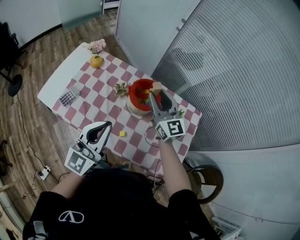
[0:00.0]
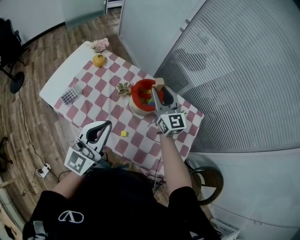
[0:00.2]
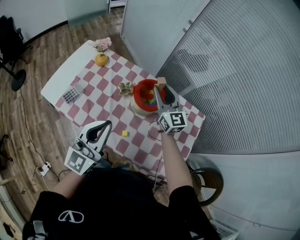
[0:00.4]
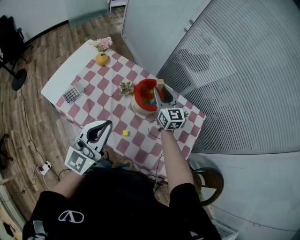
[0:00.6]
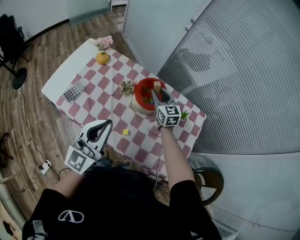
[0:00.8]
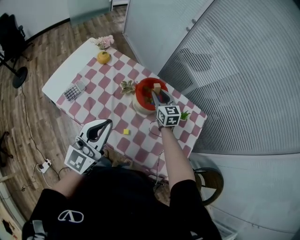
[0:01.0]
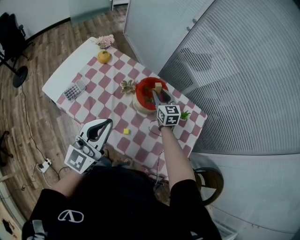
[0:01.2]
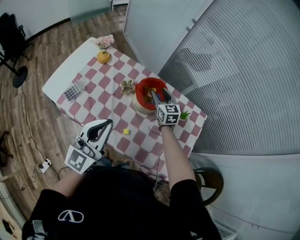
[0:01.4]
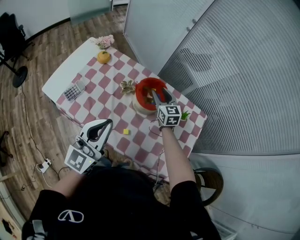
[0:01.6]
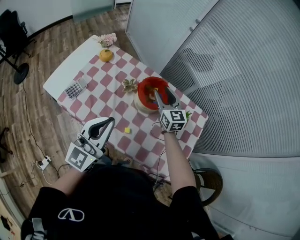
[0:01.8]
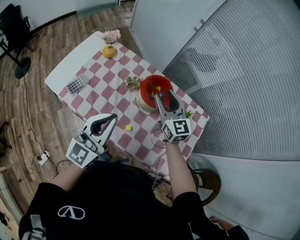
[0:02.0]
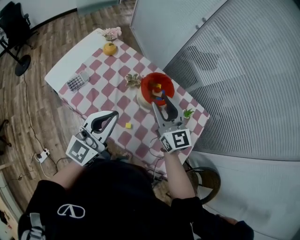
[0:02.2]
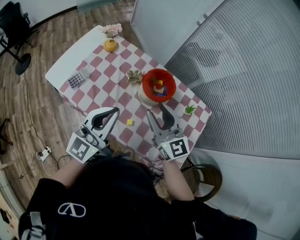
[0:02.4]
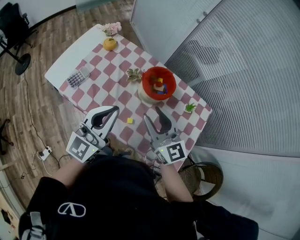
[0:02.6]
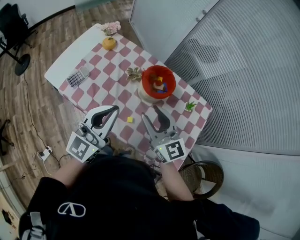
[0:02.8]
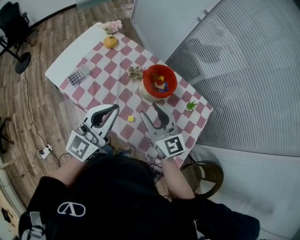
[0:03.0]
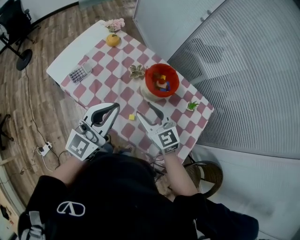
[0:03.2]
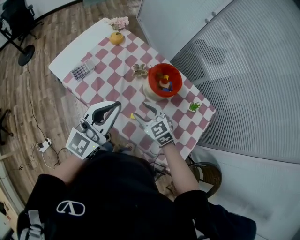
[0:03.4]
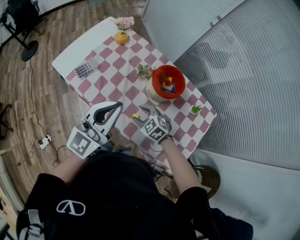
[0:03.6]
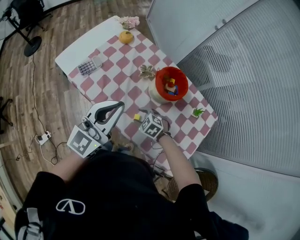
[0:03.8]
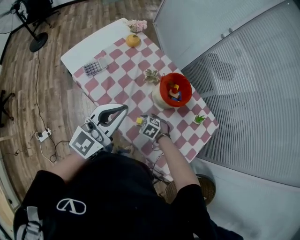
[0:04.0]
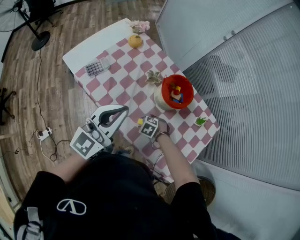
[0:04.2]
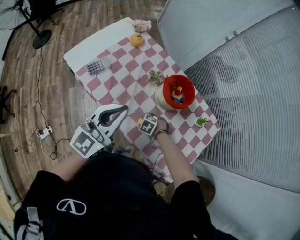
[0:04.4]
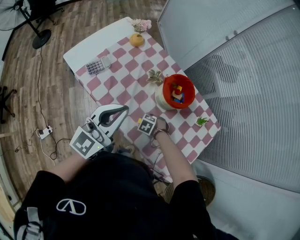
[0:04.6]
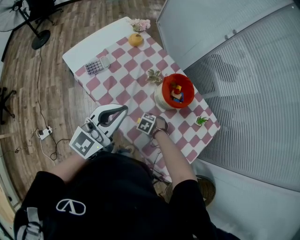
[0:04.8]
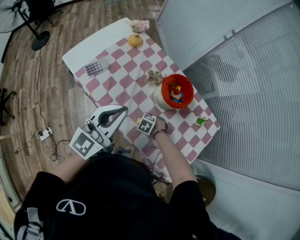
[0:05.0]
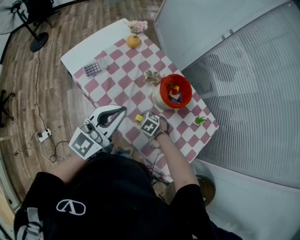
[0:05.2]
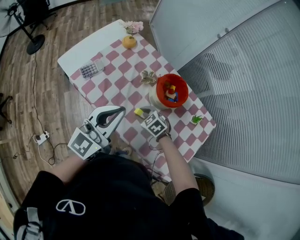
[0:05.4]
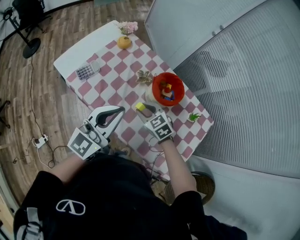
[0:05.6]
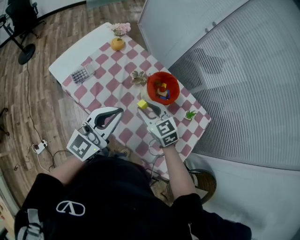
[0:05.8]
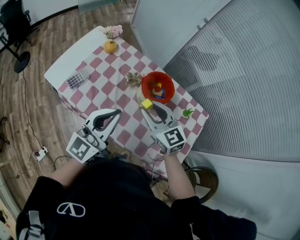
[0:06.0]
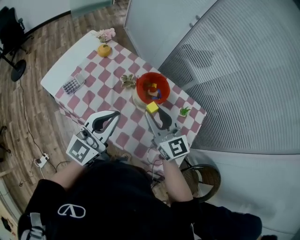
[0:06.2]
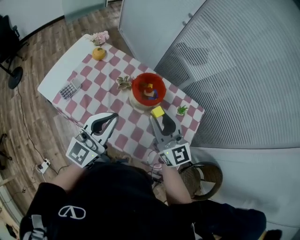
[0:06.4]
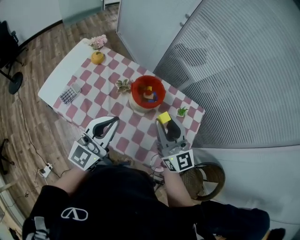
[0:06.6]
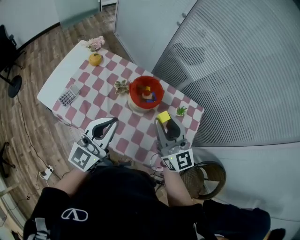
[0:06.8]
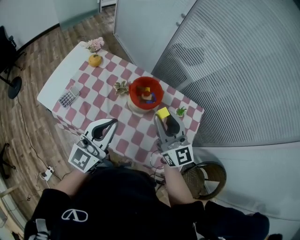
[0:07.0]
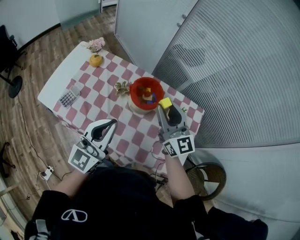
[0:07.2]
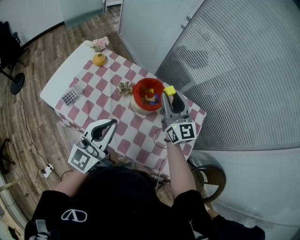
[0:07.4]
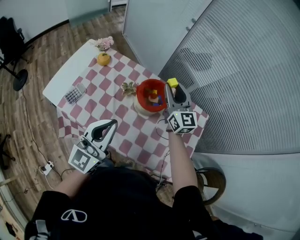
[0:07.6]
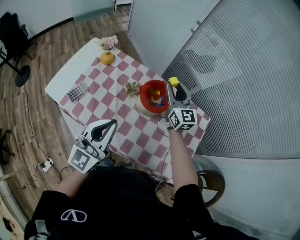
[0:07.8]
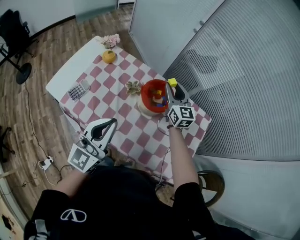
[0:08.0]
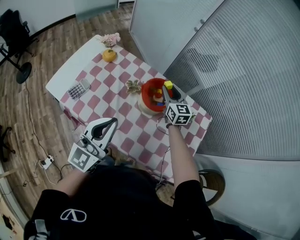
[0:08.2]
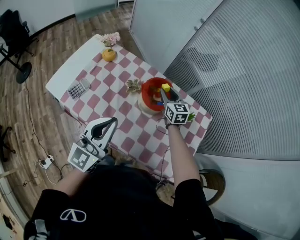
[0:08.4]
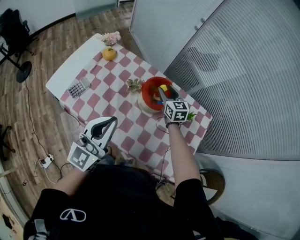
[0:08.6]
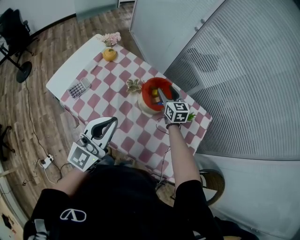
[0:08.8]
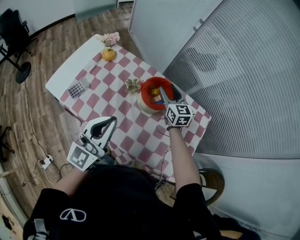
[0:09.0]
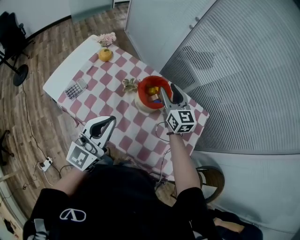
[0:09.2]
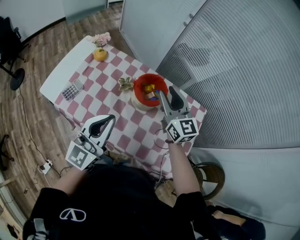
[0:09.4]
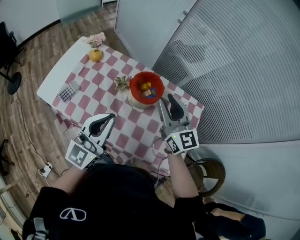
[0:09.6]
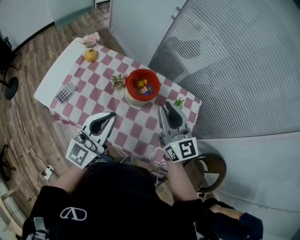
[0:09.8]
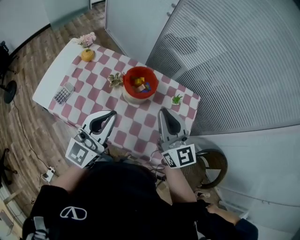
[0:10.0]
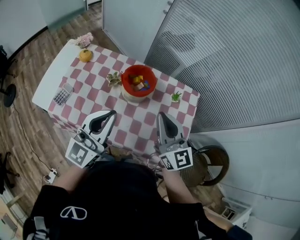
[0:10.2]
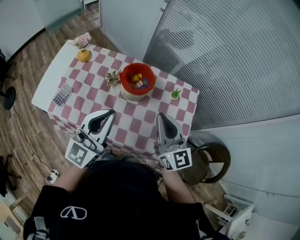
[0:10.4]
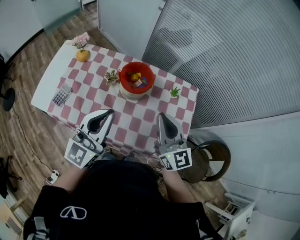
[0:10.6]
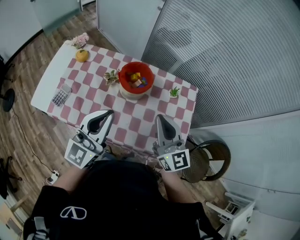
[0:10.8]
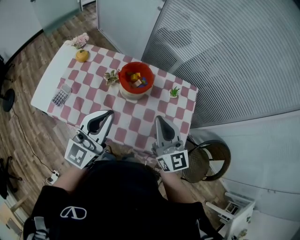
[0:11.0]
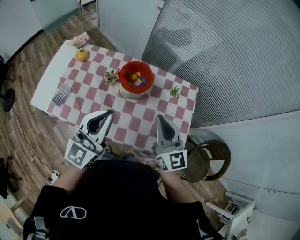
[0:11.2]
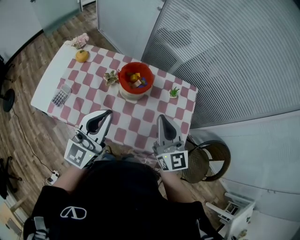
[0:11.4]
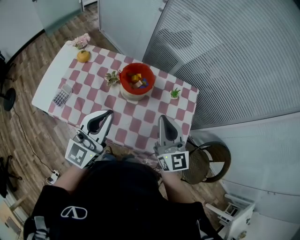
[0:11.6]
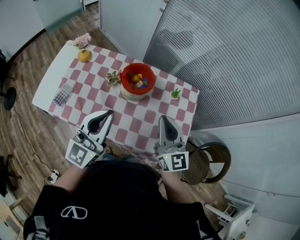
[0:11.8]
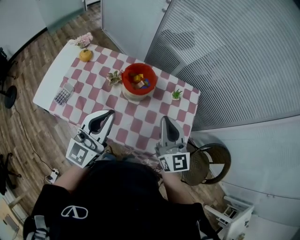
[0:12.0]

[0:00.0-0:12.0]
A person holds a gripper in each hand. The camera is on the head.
0:00.0 to 0:01.6: The right gripper shifts roughly 15 cm downward and forward, and swivels some 20 degrees.
0:01.6 to 0:03.0: The right gripper shifts about 25 cm backward, upward and to the left, and rotates about 20 degrees.
0:03.0 to 0:04.4: The right gripper heads downward, covering roughly 35 cm, and points its fingers some 70 degrees further downward.
0:04.4 to 0:06.0: The right gripper moves upward, some 35 cm, and tilts its fingers about 60 degrees upward.
0:06.0 to 0:07.6: The right gripper heads forward, to the right and upward, covering about 15 cm, and rotates some 30 degrees.
0:07.6 to 0:09.0: The right gripper shifts about 10 cm downward.
0:09.0 to 0:10.4: The left gripper shifts about 5 cm to the right, while the right gripper heads backward and upward, covering approximately 25 cm, changes its angle by roughly 20 degrees, and closes its fingers.
0:10.4 to 0:12.0: The grippers make only small movements.

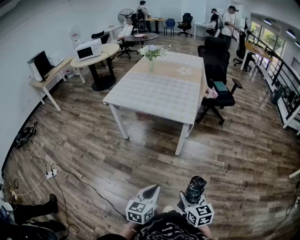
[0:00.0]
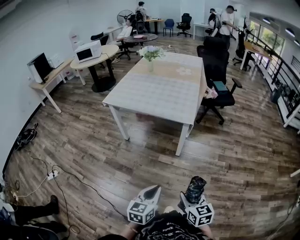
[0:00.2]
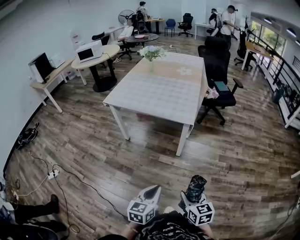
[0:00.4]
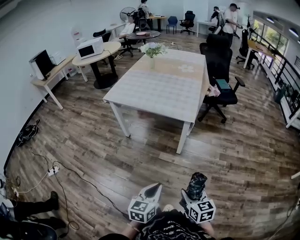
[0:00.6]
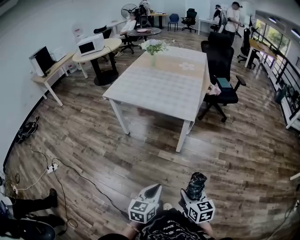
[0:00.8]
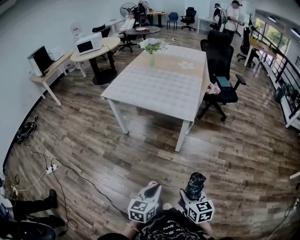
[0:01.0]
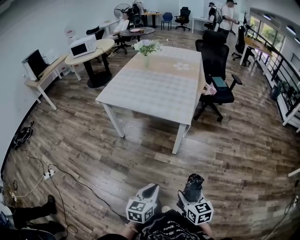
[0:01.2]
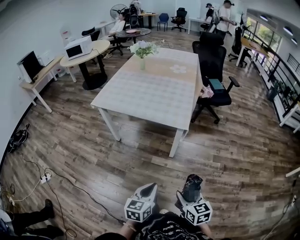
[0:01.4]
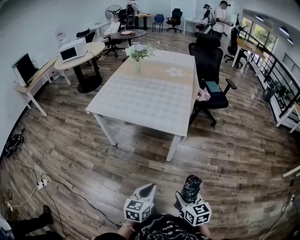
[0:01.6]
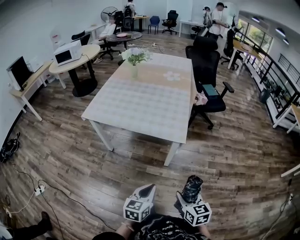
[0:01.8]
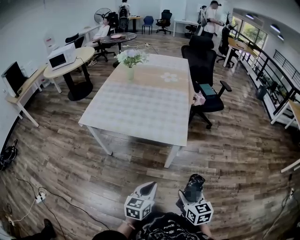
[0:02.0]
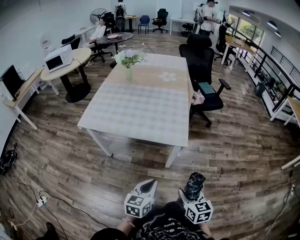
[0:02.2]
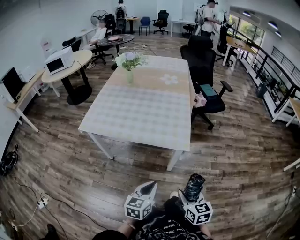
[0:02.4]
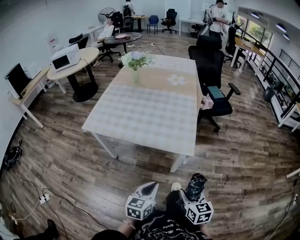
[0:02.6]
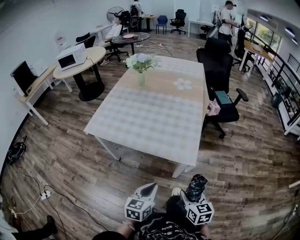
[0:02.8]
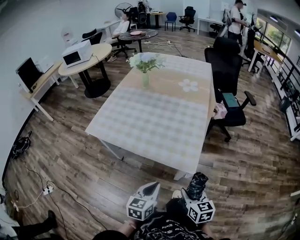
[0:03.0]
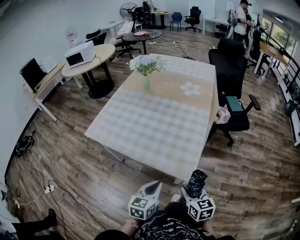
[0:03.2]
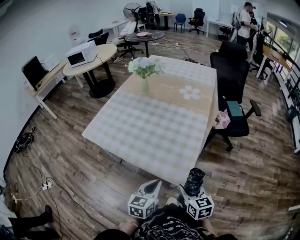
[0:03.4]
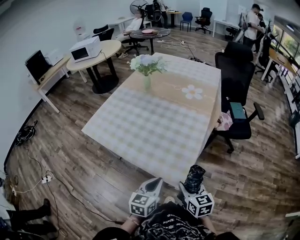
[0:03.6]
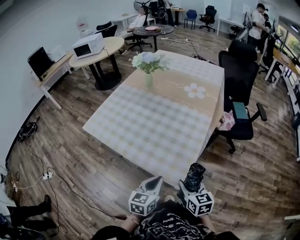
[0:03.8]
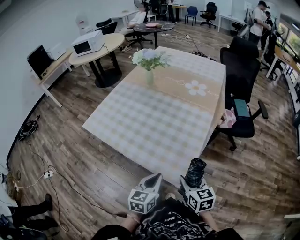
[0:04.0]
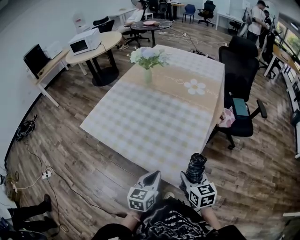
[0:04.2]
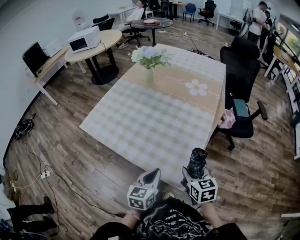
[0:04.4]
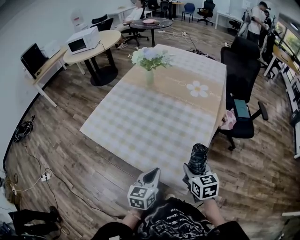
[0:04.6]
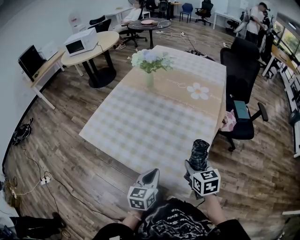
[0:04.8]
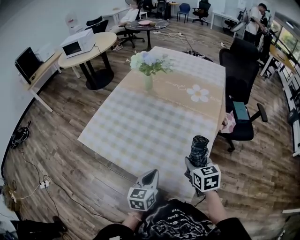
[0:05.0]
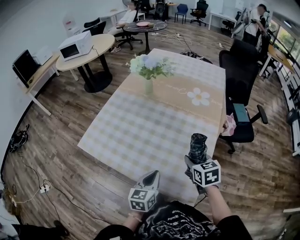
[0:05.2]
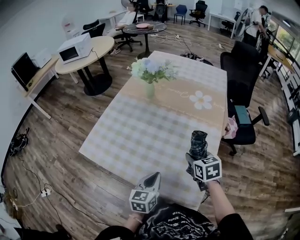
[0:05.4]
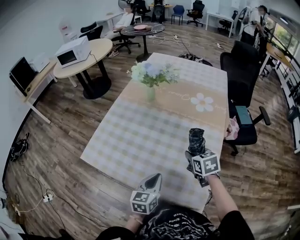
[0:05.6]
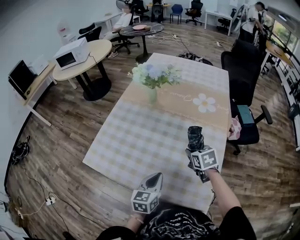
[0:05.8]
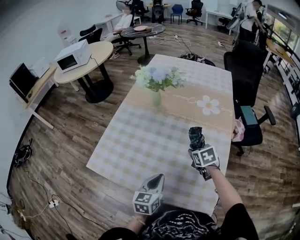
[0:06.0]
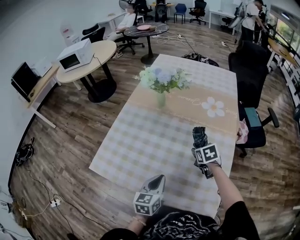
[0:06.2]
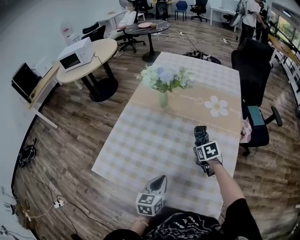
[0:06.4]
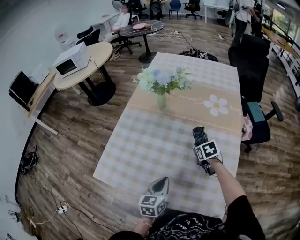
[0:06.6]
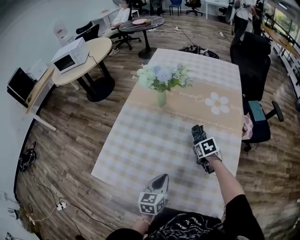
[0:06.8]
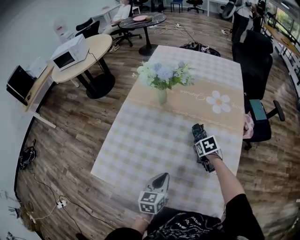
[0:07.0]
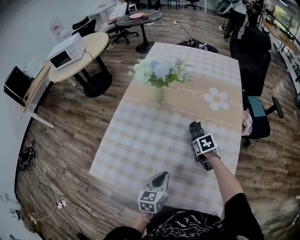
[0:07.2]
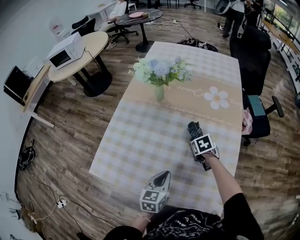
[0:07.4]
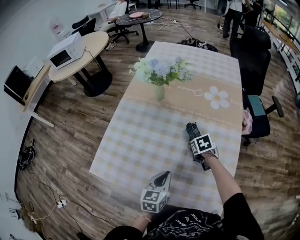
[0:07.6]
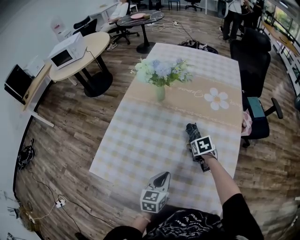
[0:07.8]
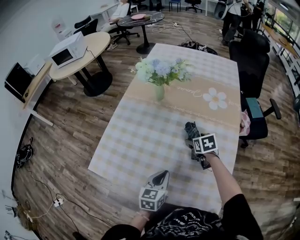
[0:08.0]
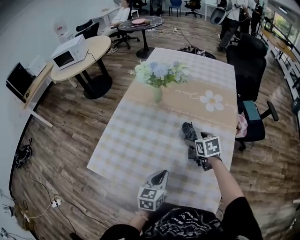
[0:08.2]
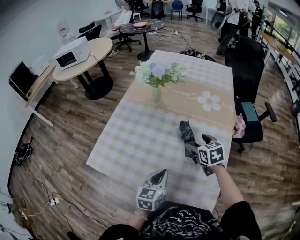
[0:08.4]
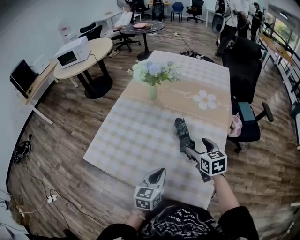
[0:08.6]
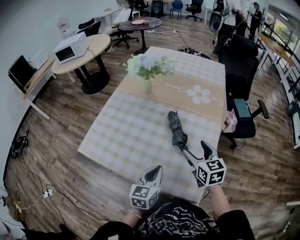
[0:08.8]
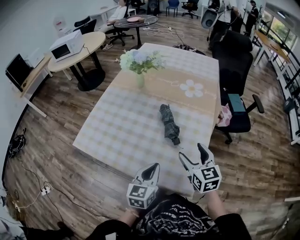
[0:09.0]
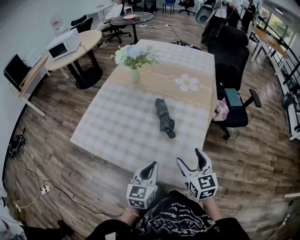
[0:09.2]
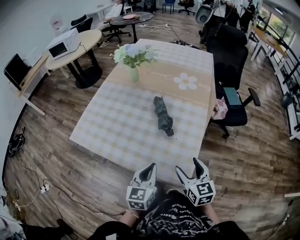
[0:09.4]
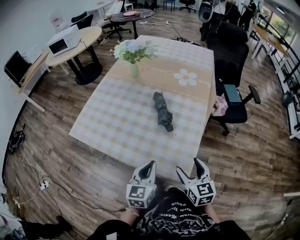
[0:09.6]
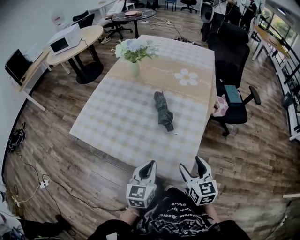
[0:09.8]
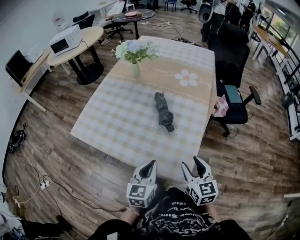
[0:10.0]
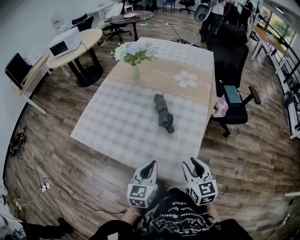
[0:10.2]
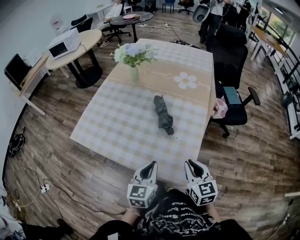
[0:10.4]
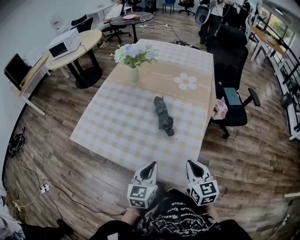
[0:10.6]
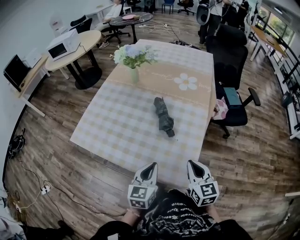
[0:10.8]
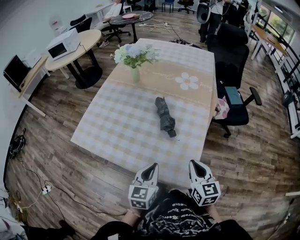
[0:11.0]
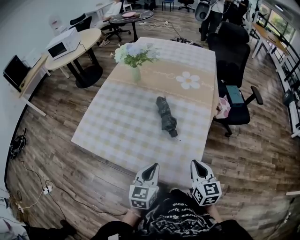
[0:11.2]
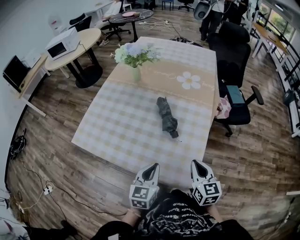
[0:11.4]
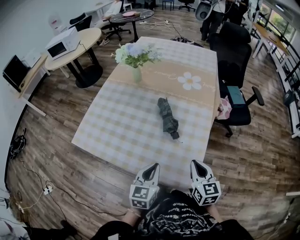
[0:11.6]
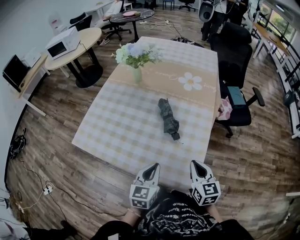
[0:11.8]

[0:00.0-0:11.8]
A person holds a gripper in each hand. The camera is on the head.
0:00.0 to 0:01.4: Both grippers move forward, approximately 10 cm.
0:01.4 to 0:03.0: The grippers both shift forward by about 30 cm.
0:03.0 to 0:04.4: The left gripper shifts about 15 cm forward and to the right. Meanwhile the right gripper moves forward, about 20 cm.
0:04.4 to 0:06.0: The left gripper moves forward and to the left, approximately 15 cm. Meanwhile the right gripper heads forward, covering roughly 20 cm.
0:06.0 to 0:07.4: The left gripper is displaced forward by about 5 cm; the right gripper goes approximately 15 cm downward and forward.
0:07.4 to 0:08.8: The right gripper is displaced upward and backward by approximately 25 cm, tips its fingers upward by approximately 40 degrees, and opens up, while the left gripper moves backward, to the right and upward, roughly 10 cm.
0:08.8 to 0:10.4: The right gripper moves backward, approximately 15 cm, and closes.
0:10.4 to 0:11.8: The grippers make only small movements.
